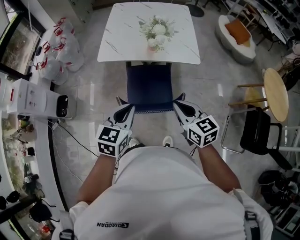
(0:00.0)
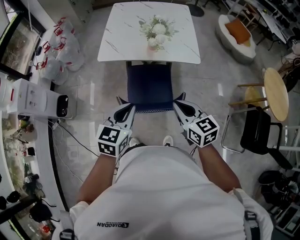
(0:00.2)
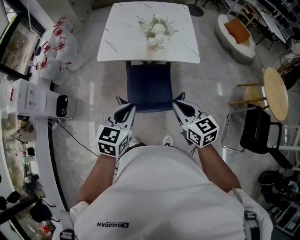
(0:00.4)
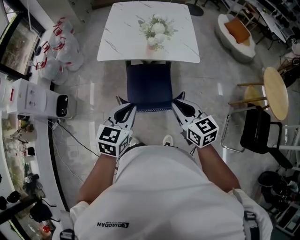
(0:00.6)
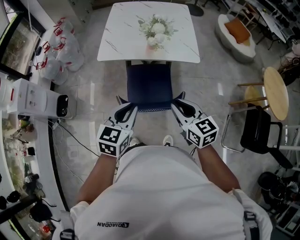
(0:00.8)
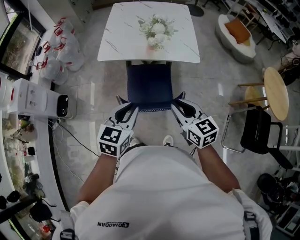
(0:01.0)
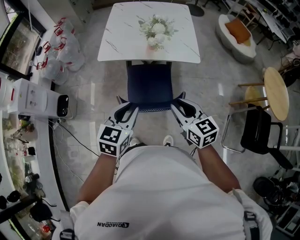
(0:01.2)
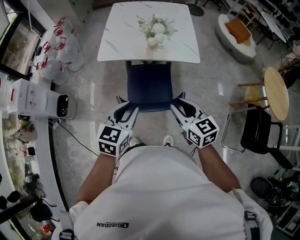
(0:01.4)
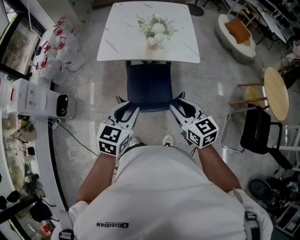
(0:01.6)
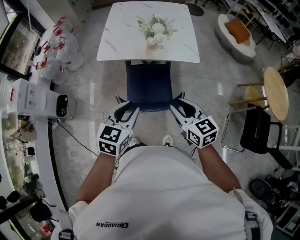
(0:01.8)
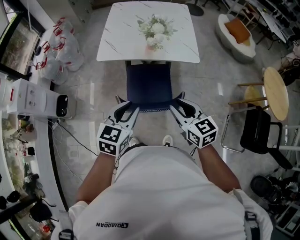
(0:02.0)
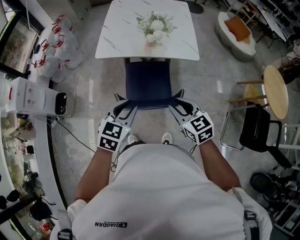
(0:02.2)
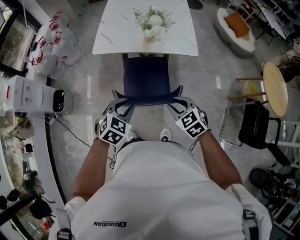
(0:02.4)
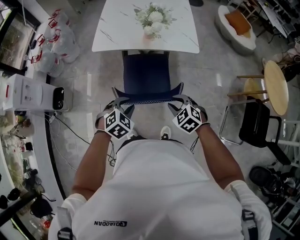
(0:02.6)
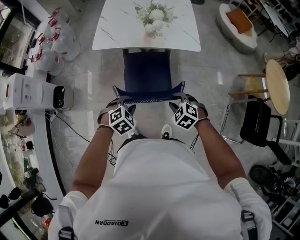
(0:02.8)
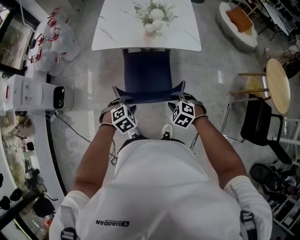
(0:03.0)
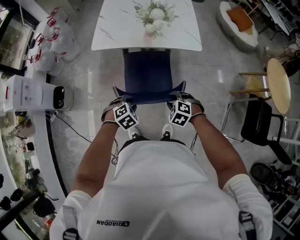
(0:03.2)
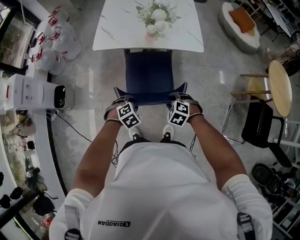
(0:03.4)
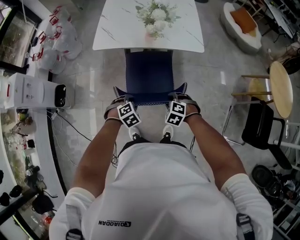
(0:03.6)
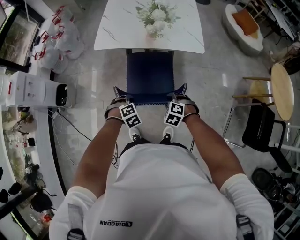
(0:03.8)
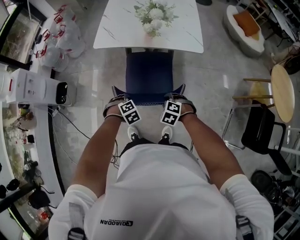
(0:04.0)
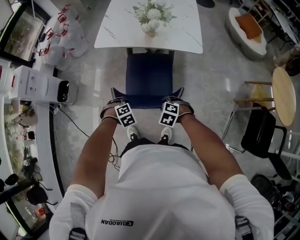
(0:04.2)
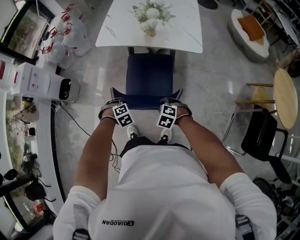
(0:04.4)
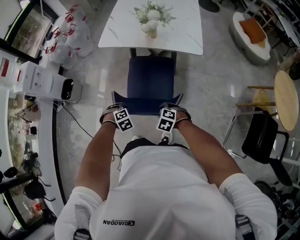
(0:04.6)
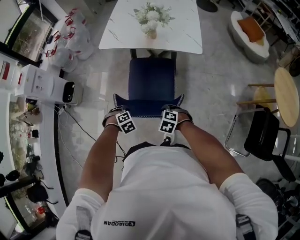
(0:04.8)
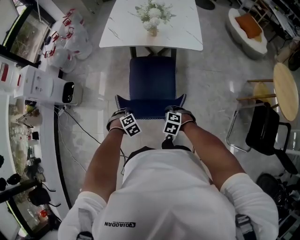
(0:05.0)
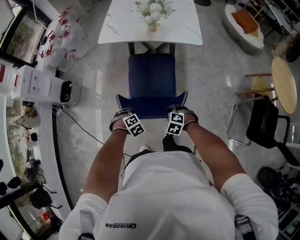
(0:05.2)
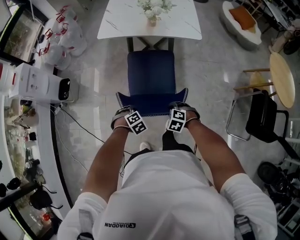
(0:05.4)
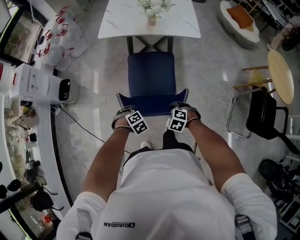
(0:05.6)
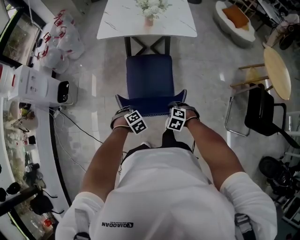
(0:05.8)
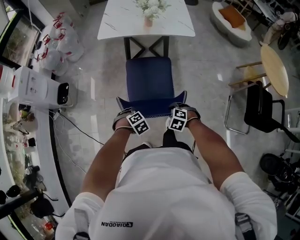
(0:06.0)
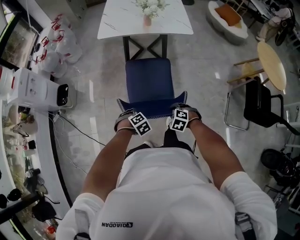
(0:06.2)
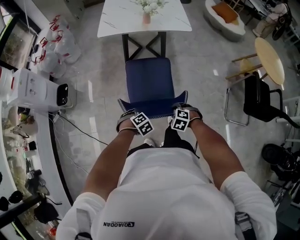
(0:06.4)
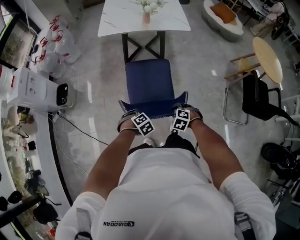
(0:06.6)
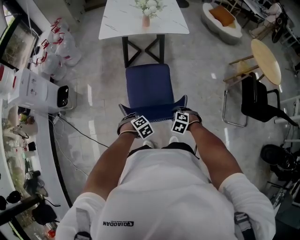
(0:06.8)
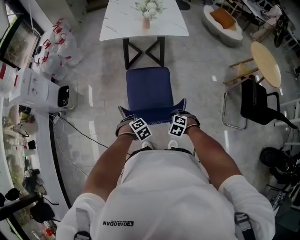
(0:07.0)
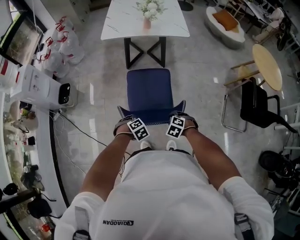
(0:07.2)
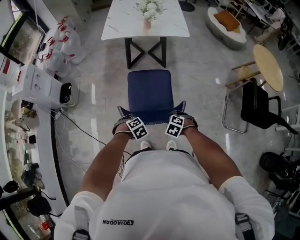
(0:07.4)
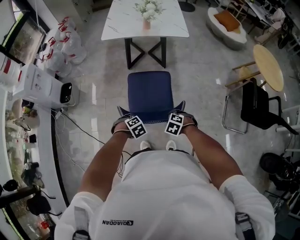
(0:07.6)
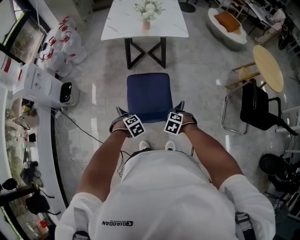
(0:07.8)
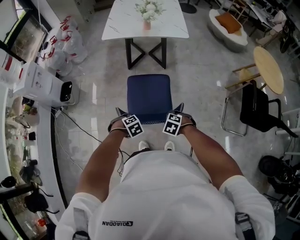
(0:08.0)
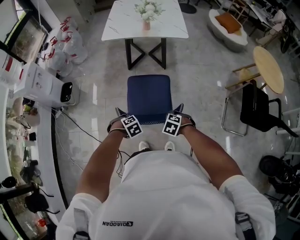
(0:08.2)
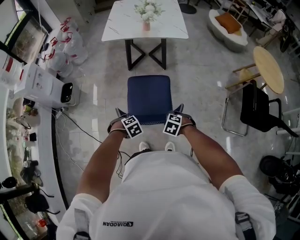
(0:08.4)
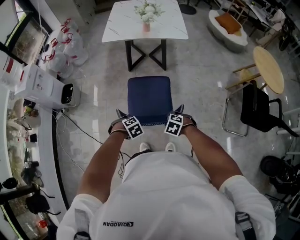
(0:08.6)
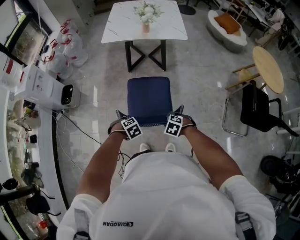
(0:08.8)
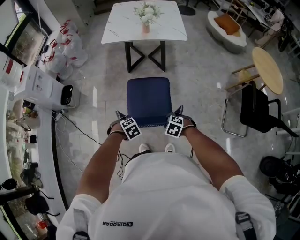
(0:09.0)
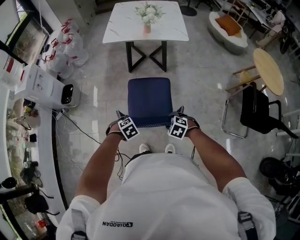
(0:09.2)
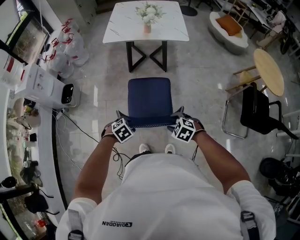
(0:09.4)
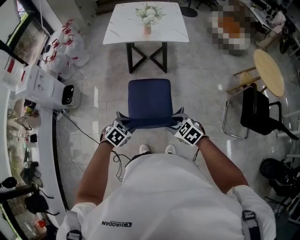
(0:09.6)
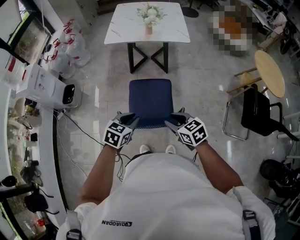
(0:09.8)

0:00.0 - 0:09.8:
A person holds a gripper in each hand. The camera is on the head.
0:00.0 - 0:01.4: The right gripper opens up, while the left gripper opens.
0:01.4 - 0:02.8: The grippers both shift downward by approximately 20 cm. The right gripper tips its fingers downward by about 40 degrees; the left gripper tilts its fingers about 30 degrees downward.
0:02.8 - 0:04.2: The two grippers go about 10 cm downward. The left gripper swivels some 20 degrees.
0:04.2 - 0:05.6: The left gripper ends up approximately 15 cm from where it was; the right gripper moves about 15 cm.
0:05.6 - 0:07.0: The left gripper shifts by roughly 15 cm. Meanwhile the right gripper moves about 15 cm.
0:07.0 - 0:08.4: The grippers stay close to where they were, moving slightly.
0:08.4 - 0:09.8: Both grippers travel together upward, approximately 20 cm. The right gripper angles its fingers upward, by roughly 40 degrees, while the left gripper tips its fingers upward by about 40 degrees.

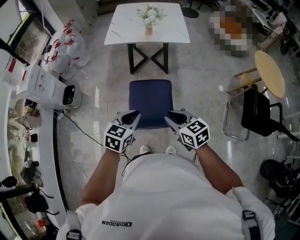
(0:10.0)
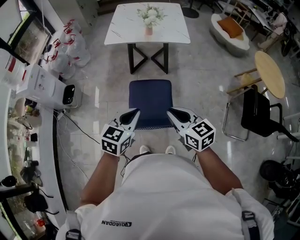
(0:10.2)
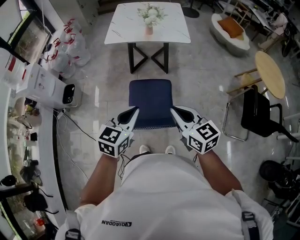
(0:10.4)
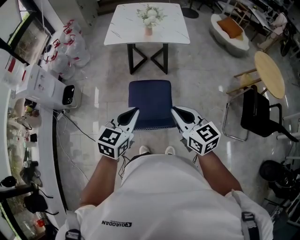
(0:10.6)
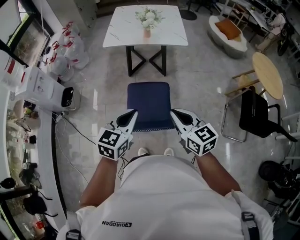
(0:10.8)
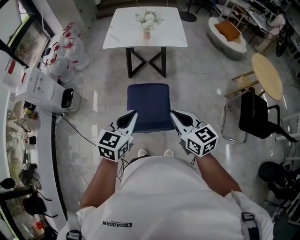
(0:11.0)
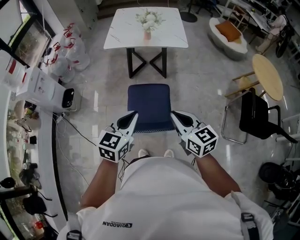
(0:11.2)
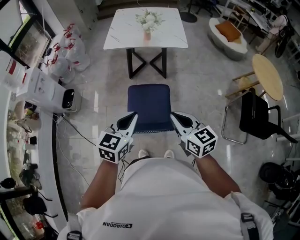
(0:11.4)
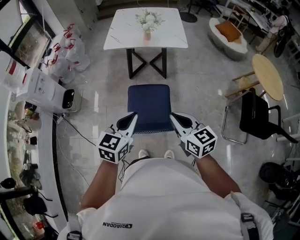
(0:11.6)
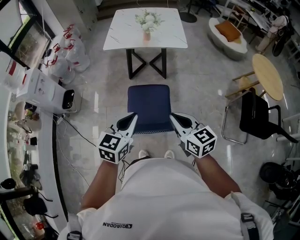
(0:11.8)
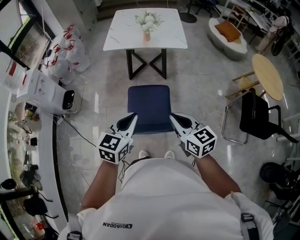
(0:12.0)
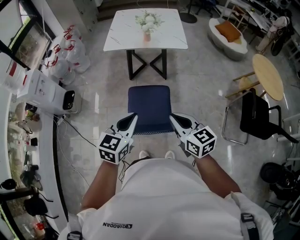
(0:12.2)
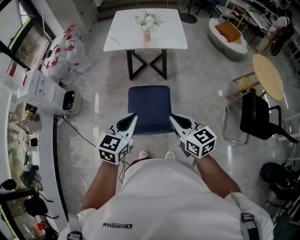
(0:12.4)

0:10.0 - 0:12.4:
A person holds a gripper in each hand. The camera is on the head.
0:10.0 - 0:11.2: Both grippers move upward, approximately 10 cm. The right gripper closes.
0:11.2 - 0:12.4: Both grippers stay about where they are.

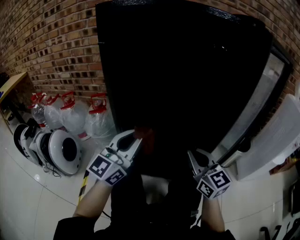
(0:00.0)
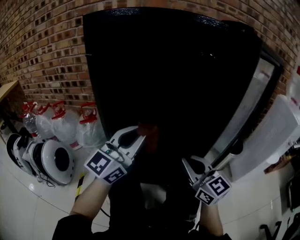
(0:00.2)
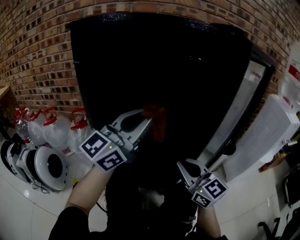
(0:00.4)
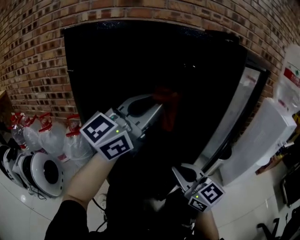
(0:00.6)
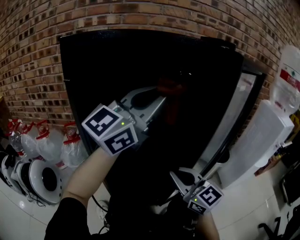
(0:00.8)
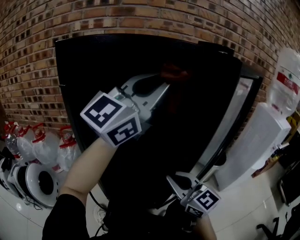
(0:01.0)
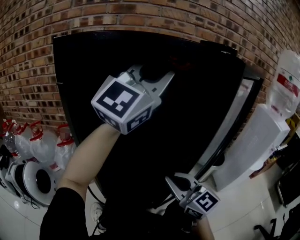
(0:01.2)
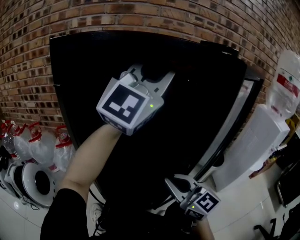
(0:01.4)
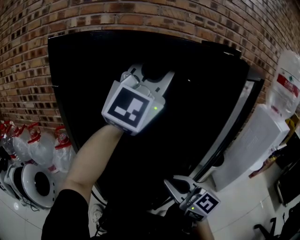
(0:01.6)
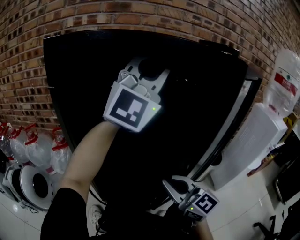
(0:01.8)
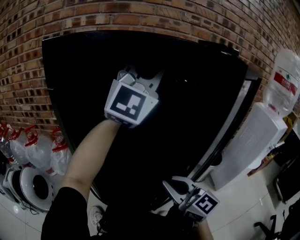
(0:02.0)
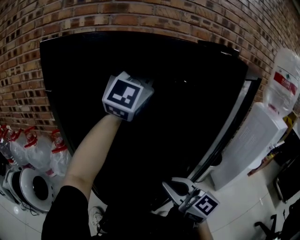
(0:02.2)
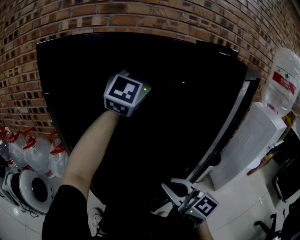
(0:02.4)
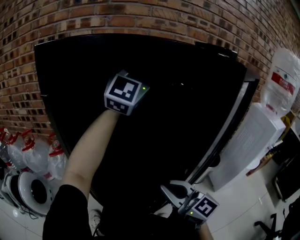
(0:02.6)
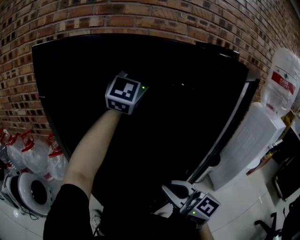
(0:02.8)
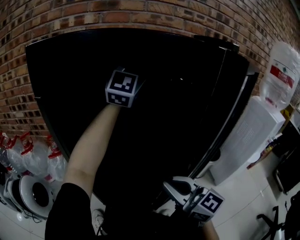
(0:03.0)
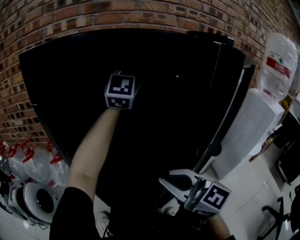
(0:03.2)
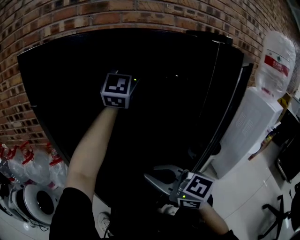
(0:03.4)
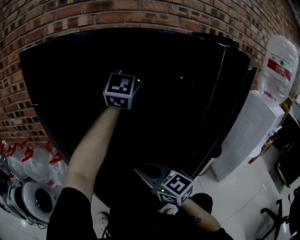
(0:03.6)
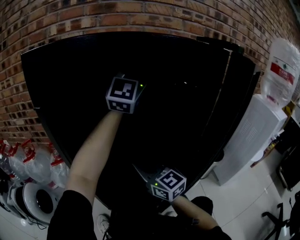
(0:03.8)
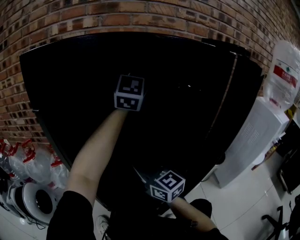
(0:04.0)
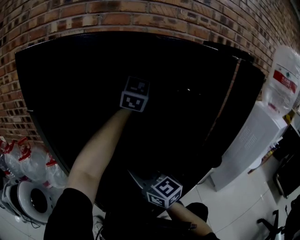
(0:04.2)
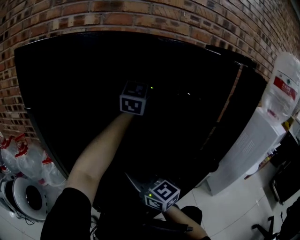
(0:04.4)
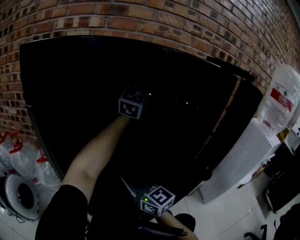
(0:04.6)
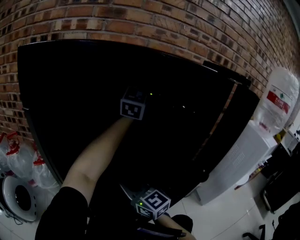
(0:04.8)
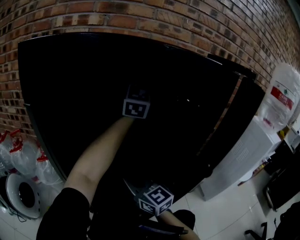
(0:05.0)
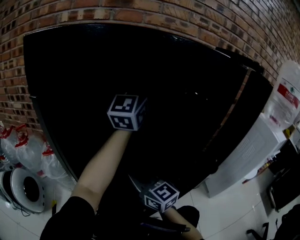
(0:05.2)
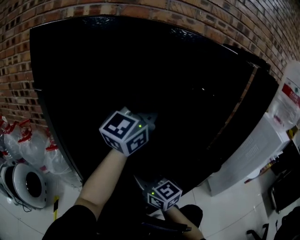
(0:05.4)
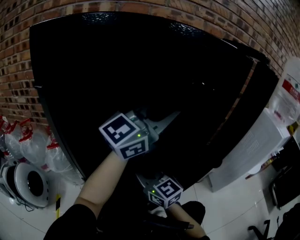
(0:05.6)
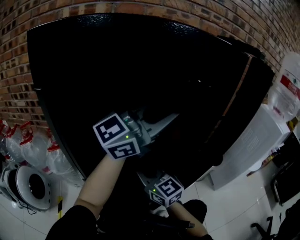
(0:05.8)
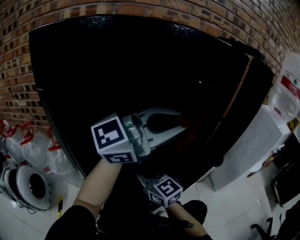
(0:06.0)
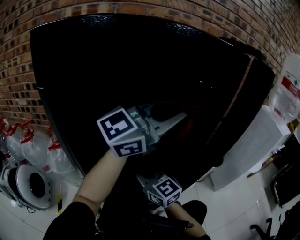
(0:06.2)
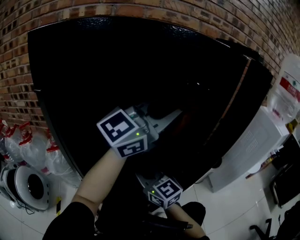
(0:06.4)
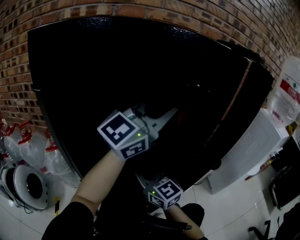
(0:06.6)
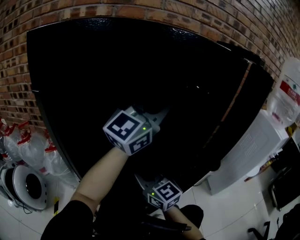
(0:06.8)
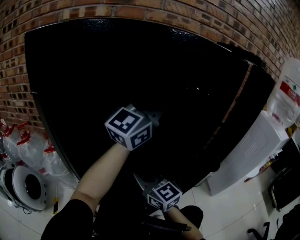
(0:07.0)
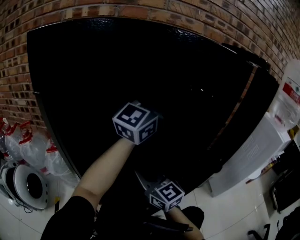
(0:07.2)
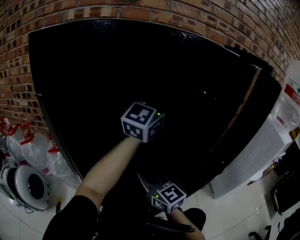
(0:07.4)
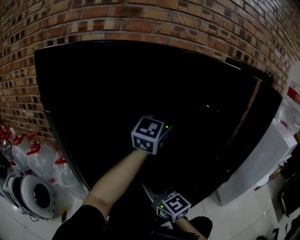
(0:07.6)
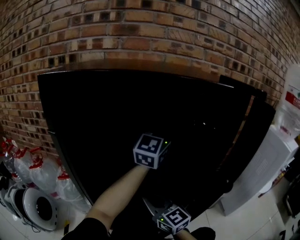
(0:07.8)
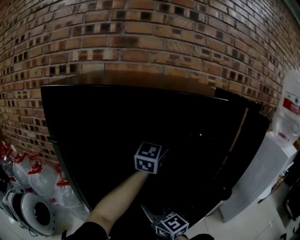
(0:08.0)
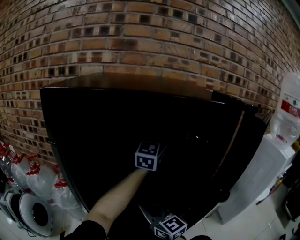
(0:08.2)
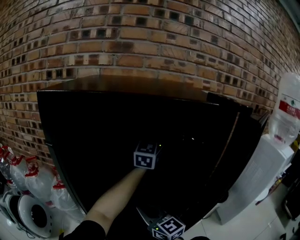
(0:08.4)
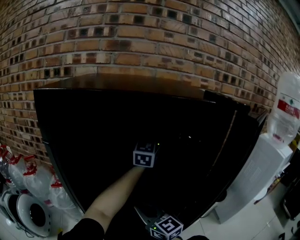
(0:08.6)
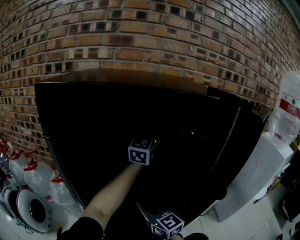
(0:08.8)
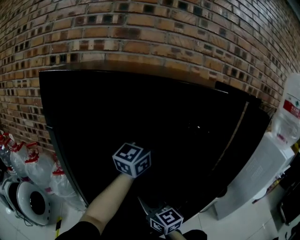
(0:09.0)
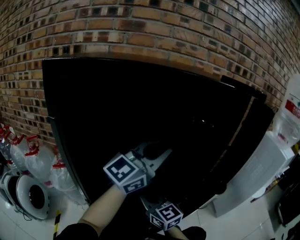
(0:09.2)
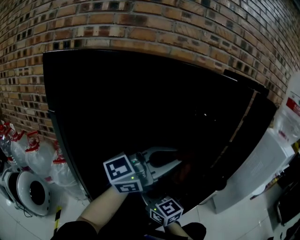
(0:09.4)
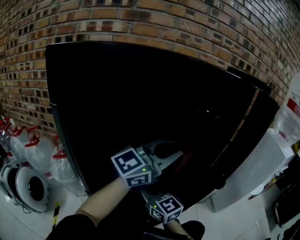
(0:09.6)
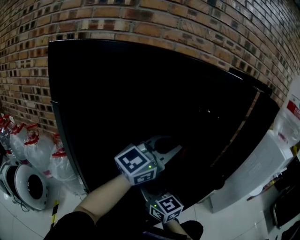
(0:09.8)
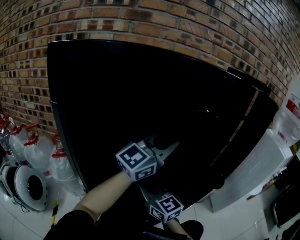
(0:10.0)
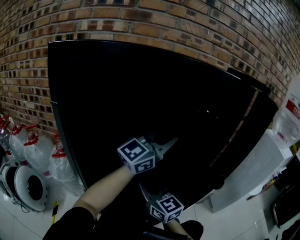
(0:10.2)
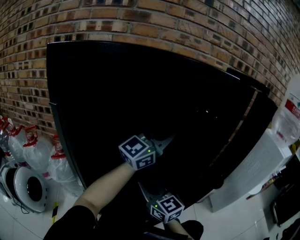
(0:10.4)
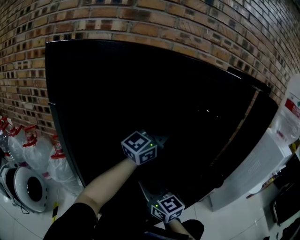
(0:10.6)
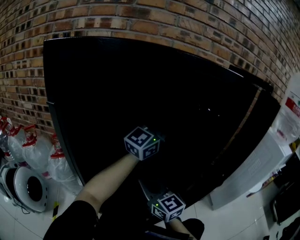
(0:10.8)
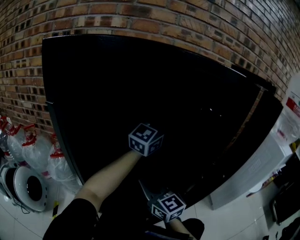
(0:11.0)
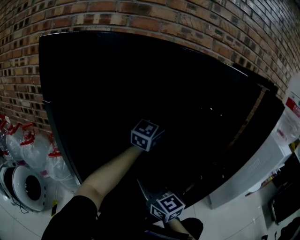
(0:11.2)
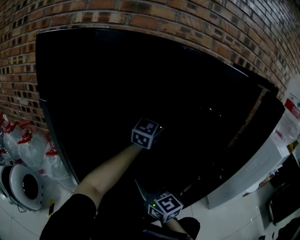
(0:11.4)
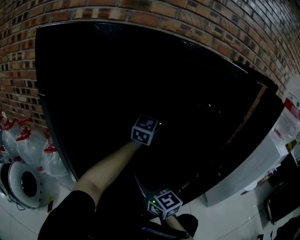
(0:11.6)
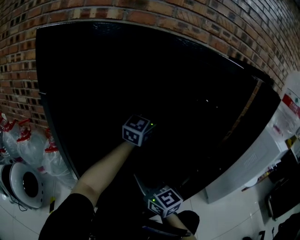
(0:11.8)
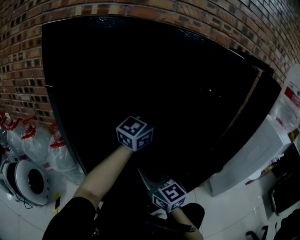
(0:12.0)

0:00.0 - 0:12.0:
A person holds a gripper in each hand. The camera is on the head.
0:00.0 - 0:01.6: The left gripper goes about 35 cm upward and to the right, and rotates roughly 40 degrees.
0:01.6 - 0:03.0: The left gripper moves forward, roughly 15 cm.
0:03.0 - 0:04.4: The left gripper is displaced forward by roughly 5 cm; the right gripper heads forward and to the left, covering roughly 15 cm.
0:04.4 - 0:06.0: The left gripper moves roughly 25 cm, and changes its angle by approximately 50 degrees.
0:06.0 - 0:07.6: The left gripper ends up approximately 20 cm from where it was, and swivels some 40 degrees.
0:07.6 - 0:09.0: The left gripper reaches about 10 cm forward, then returns.
0:09.0 - 0:10.4: The left gripper travels backward and back again, roughly 15 cm each way.
0:10.4 - 0:12.0: The left gripper moves roughly 15 cm forward and comes back.
